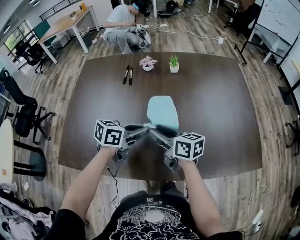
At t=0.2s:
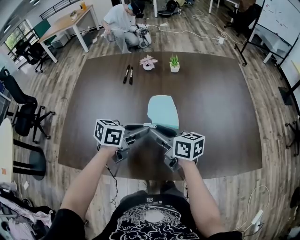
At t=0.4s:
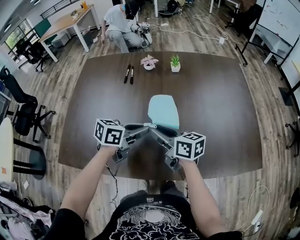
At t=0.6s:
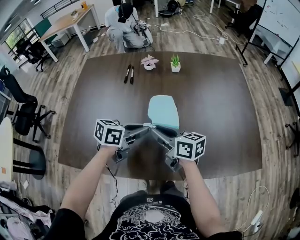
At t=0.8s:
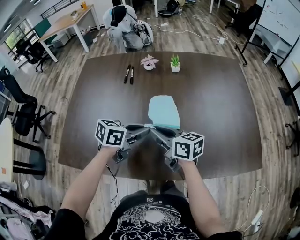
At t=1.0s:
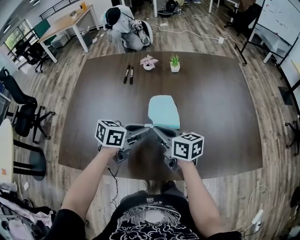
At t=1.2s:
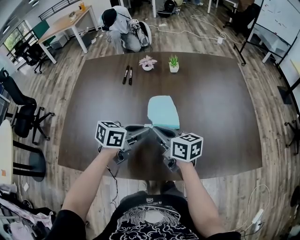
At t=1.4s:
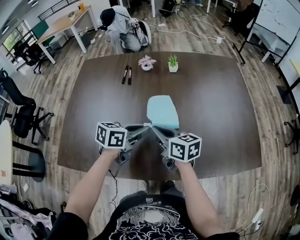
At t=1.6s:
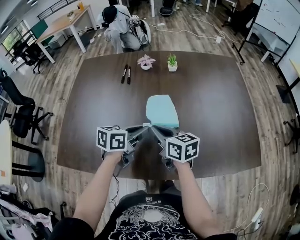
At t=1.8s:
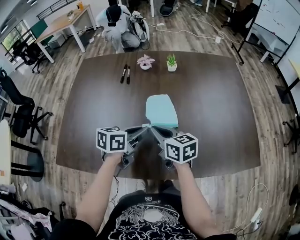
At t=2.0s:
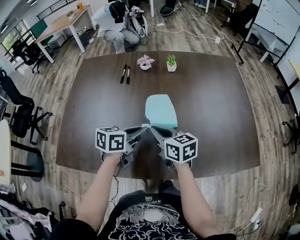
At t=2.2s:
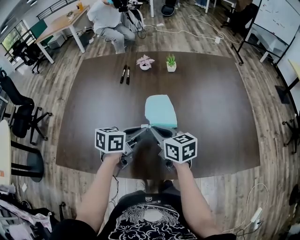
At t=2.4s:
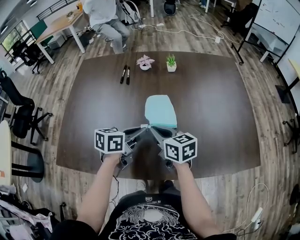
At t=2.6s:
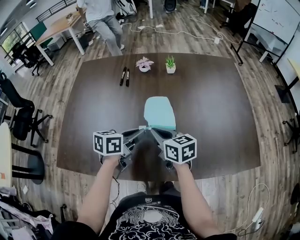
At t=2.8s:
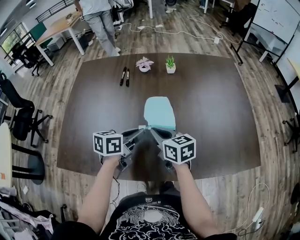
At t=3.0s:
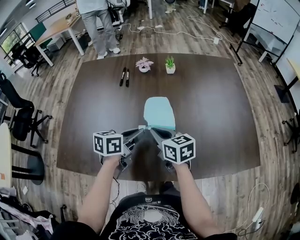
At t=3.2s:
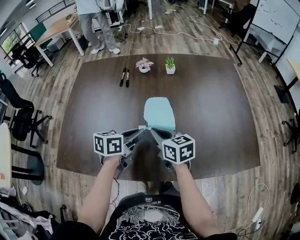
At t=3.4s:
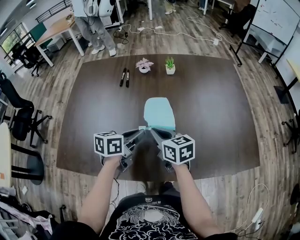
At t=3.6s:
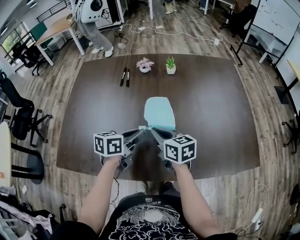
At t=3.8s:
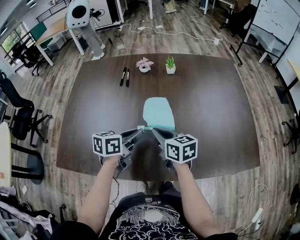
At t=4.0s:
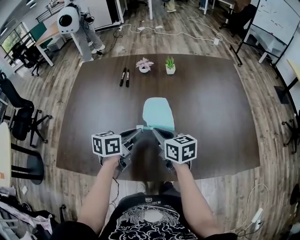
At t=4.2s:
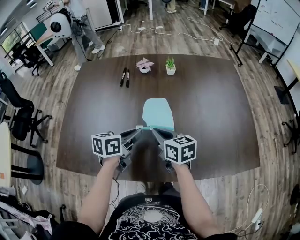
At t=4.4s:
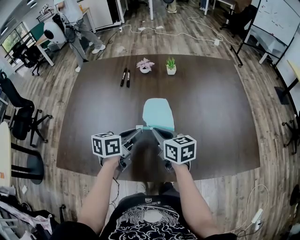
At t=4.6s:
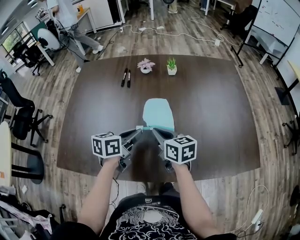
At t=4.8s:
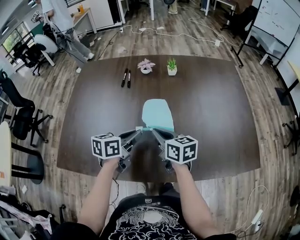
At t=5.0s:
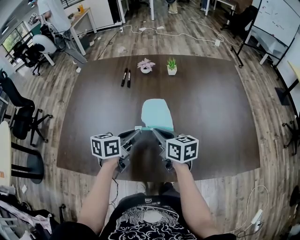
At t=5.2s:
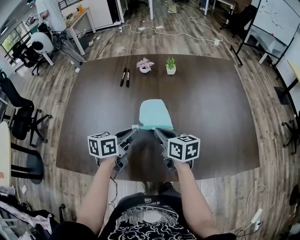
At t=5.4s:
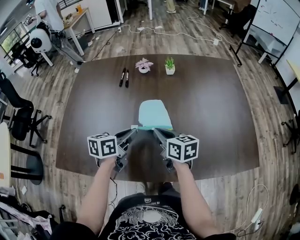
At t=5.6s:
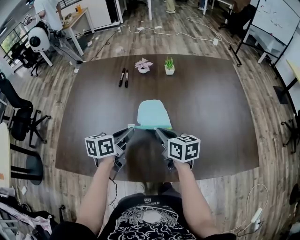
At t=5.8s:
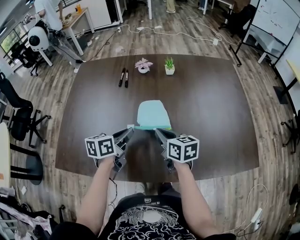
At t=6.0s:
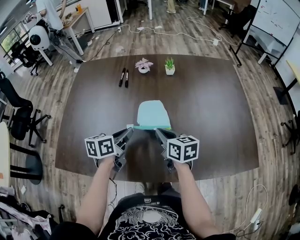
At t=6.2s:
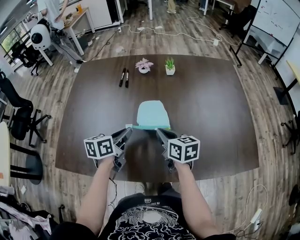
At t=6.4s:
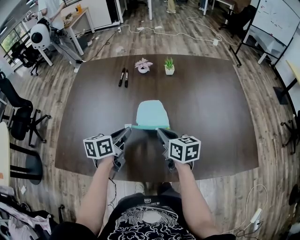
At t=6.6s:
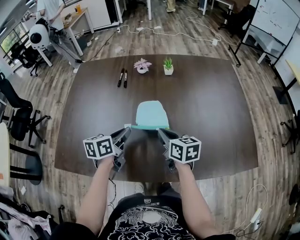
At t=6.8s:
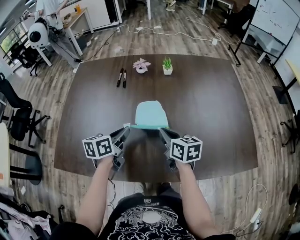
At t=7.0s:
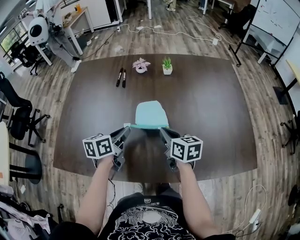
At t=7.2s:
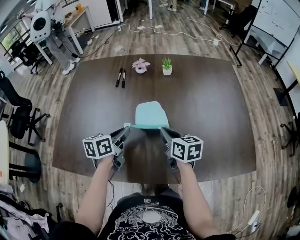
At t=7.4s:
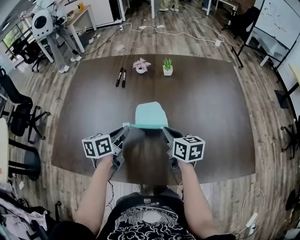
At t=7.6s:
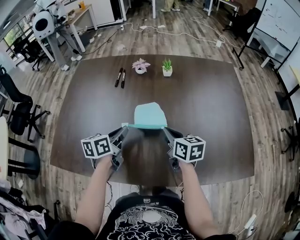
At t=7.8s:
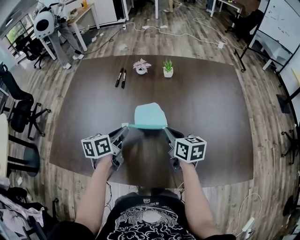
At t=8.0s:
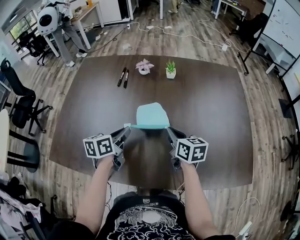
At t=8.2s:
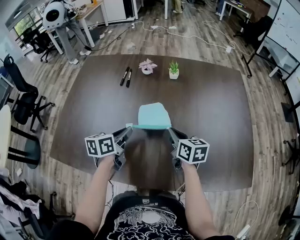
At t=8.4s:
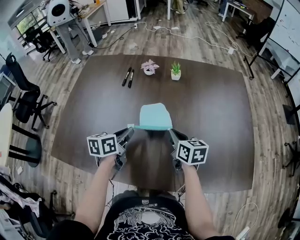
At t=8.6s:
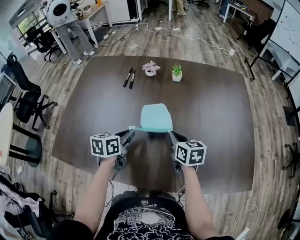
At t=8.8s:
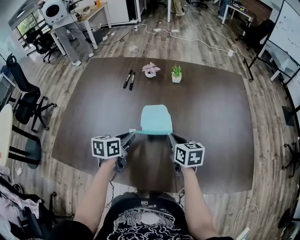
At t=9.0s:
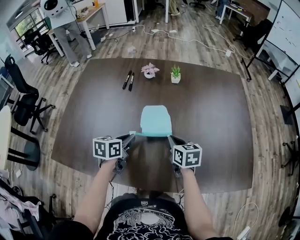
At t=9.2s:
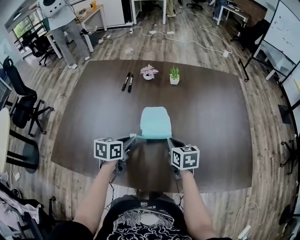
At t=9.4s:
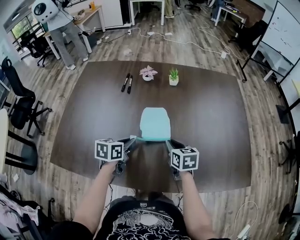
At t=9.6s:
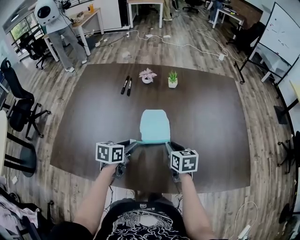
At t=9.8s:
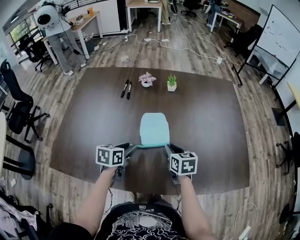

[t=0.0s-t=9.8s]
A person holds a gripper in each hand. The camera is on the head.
t=0.0s to t=1.4s: The right gripper closes.
t=1.4s to t=2.8s: There are only small adjustments of the grippers.
t=2.8s to t=4.2s: The two grippers keep their place.
t=4.2s to t=7.0s: The grippers move only a little.
t=7.0s to t=8.4s: The right gripper heads to the right, covering some 5 cm.
t=8.4s to t=9.8s: The left gripper ends up approximately 5 cm from where it was.

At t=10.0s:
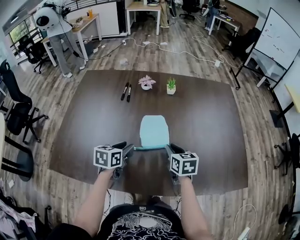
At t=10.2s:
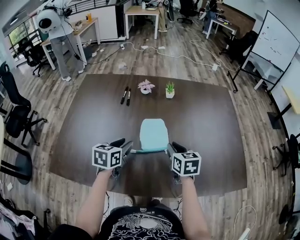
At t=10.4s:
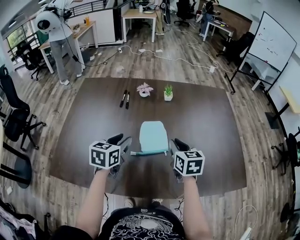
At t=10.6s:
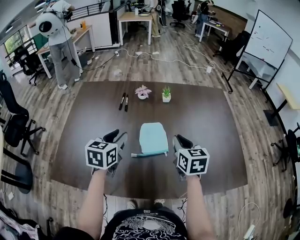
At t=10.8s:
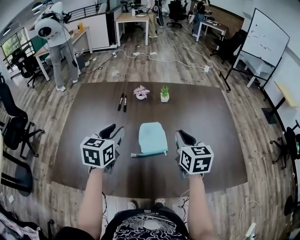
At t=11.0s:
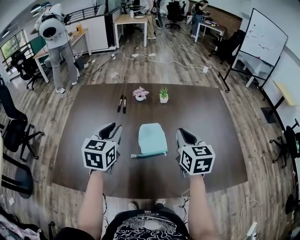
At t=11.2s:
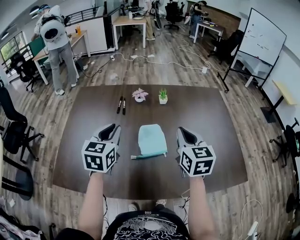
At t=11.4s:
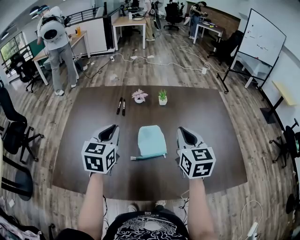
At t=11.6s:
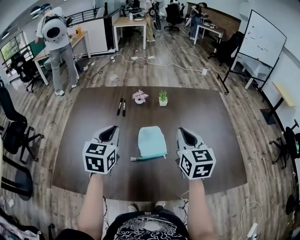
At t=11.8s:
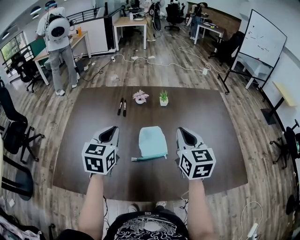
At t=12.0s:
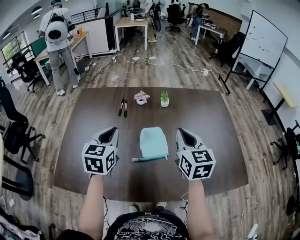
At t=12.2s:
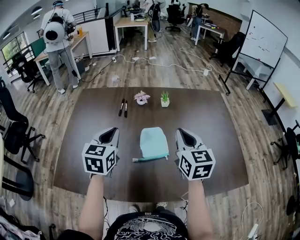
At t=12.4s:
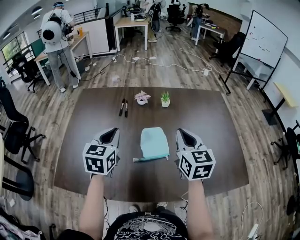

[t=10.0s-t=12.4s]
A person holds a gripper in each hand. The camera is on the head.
t=10.0s to t=11.2s: Both grippers move upward, roughly 20 cm. The left gripper rotates roughly 30 degrees. Meanwhile the right gripper rotates some 30 degrees.
t=11.2s to t=12.4s: The grippers stay close to where they were, moving slightly.

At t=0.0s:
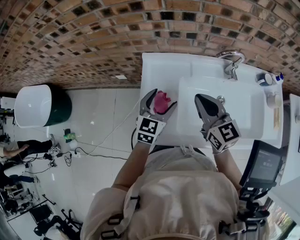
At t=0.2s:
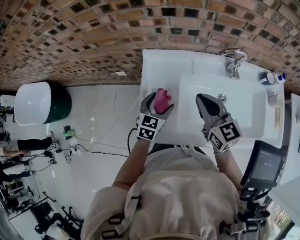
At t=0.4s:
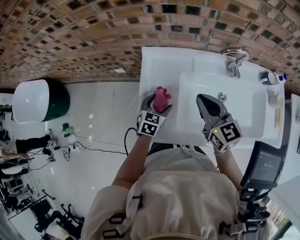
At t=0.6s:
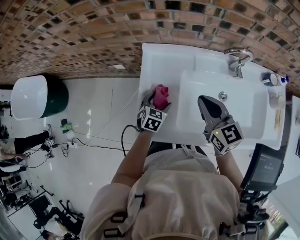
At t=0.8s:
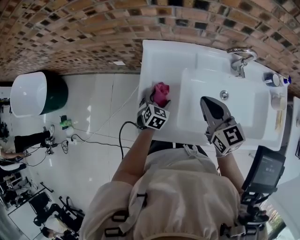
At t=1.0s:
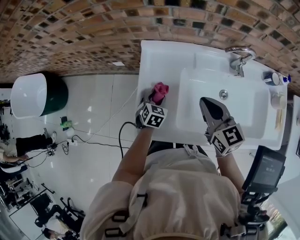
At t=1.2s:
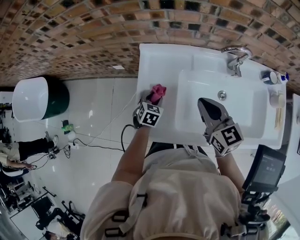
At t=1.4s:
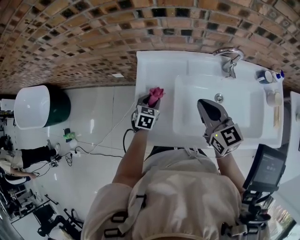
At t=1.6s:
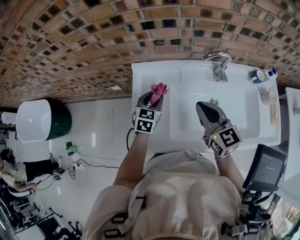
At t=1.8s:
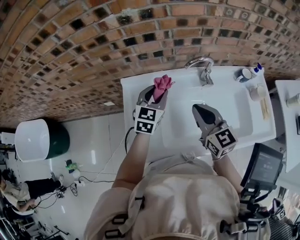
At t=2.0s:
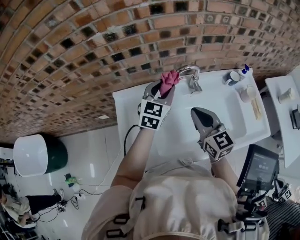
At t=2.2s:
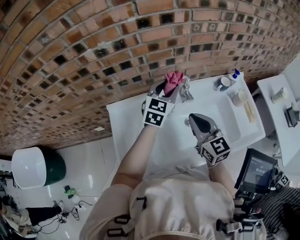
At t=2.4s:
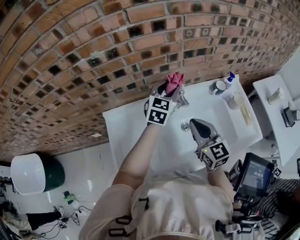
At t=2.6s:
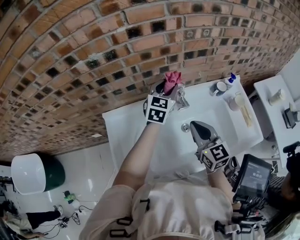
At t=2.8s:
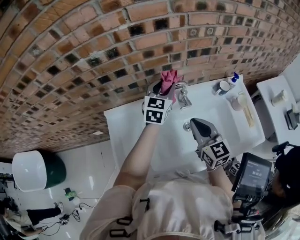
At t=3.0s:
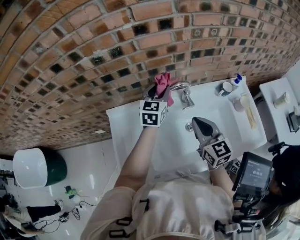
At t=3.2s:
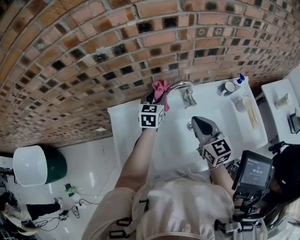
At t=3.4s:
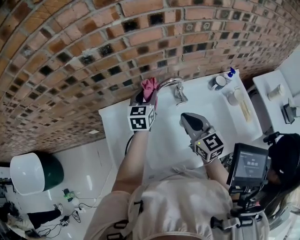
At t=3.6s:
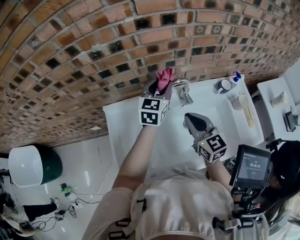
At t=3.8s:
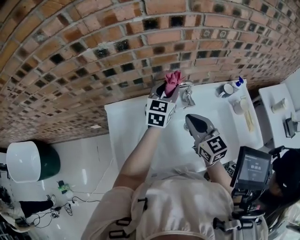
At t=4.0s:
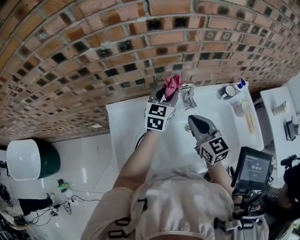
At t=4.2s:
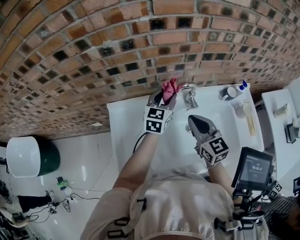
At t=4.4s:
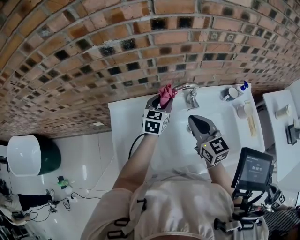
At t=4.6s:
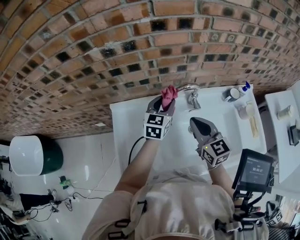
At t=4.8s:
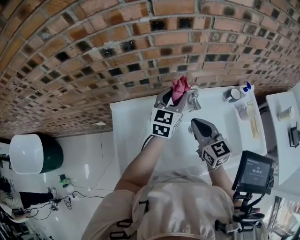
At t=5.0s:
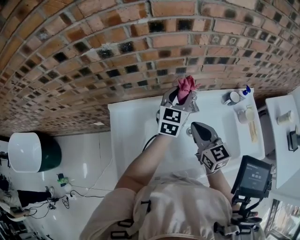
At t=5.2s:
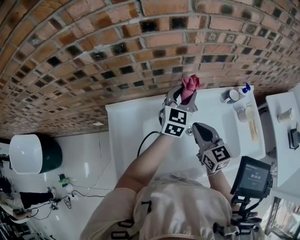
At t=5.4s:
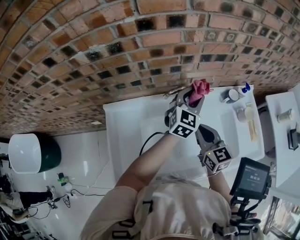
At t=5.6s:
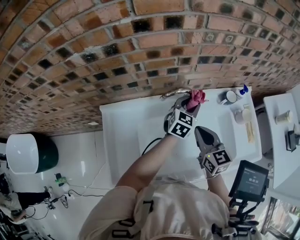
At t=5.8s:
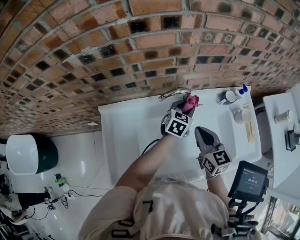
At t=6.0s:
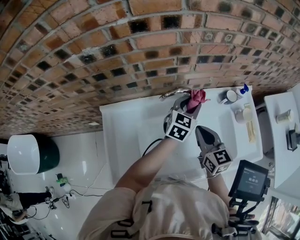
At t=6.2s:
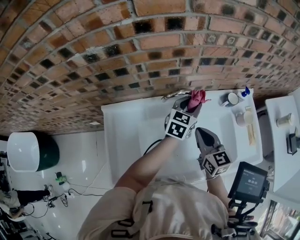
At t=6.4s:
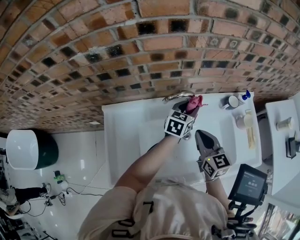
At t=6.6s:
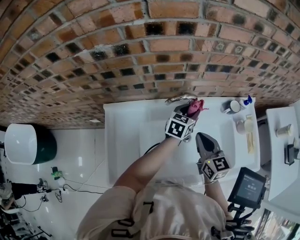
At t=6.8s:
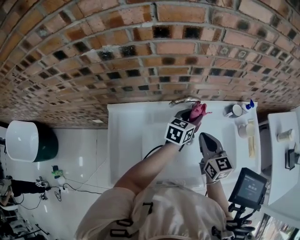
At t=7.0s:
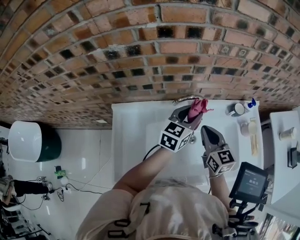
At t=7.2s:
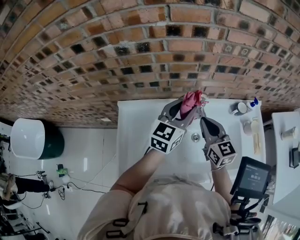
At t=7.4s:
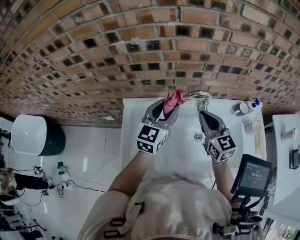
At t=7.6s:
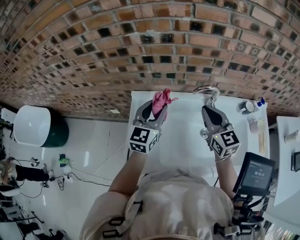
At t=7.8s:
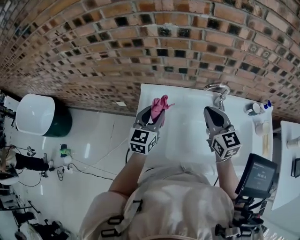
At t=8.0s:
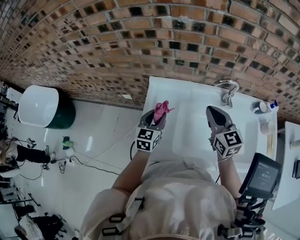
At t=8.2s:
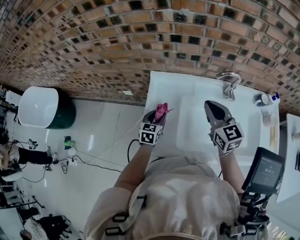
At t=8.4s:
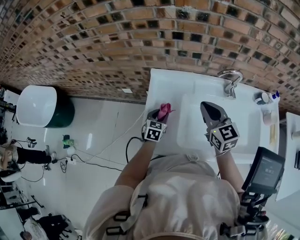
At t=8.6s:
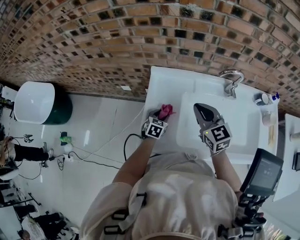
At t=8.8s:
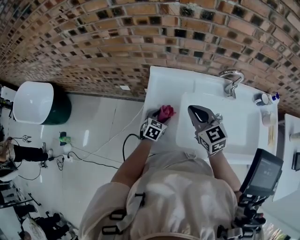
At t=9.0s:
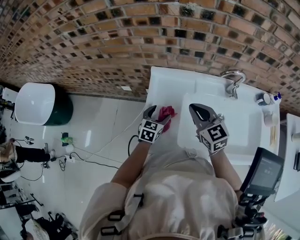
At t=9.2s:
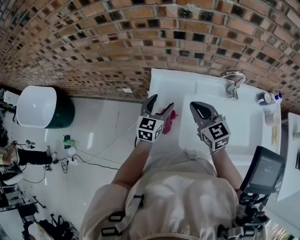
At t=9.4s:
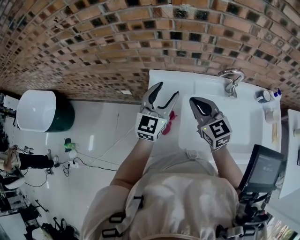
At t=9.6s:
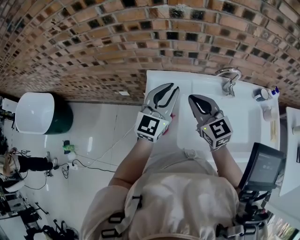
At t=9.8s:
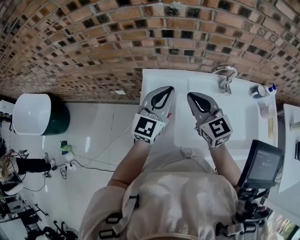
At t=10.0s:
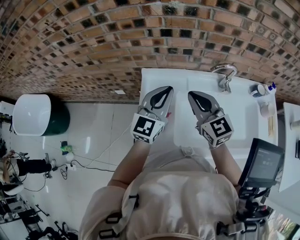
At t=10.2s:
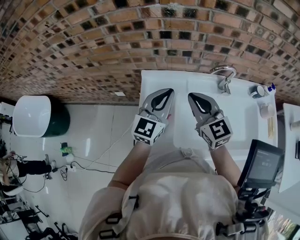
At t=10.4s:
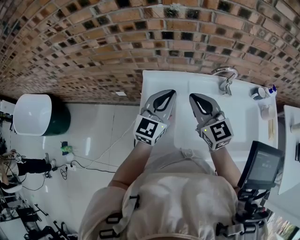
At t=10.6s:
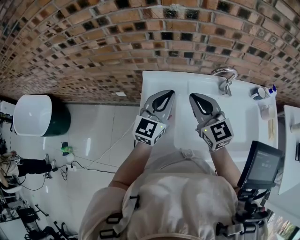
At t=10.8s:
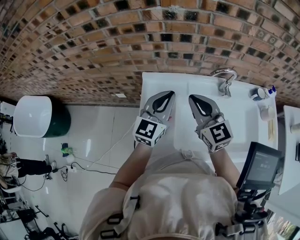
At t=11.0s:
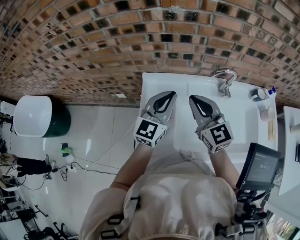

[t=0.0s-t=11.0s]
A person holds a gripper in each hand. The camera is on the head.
t=0.0s to t=1.6s: The left gripper shifts approximately 5 cm forward, travels downward and back again, some 20 cm each way, and closes up; the right gripper goes some 5 cm to the right.
t=1.6s to t=3.2s: The right gripper moves to the right and forward, some 15 cm, while the left gripper shifts about 25 cm forward, to the right and upward.
t=3.2s to t=4.8s: The left gripper goes up and down, roughly 10 cm each way, reversing 2 times.
t=4.8s to t=6.2s: The left gripper heads to the right and downward, covering some 15 cm. The right gripper travels to the right by roughly 5 cm.
t=6.2s to t=7.8s: The left gripper shifts roughly 35 cm to the left and backward, and turns by approximately 30 degrees, while the right gripper travels to the left and upward by roughly 15 cm.
t=7.8s to t=9.4s: The left gripper moves approximately 25 cm downward and comes back. Meanwhile the right gripper heads to the left, covering about 15 cm.
t=9.4s to t=11.0s: The right gripper shifts by approximately 5 cm, while the left gripper closes its fingers.
